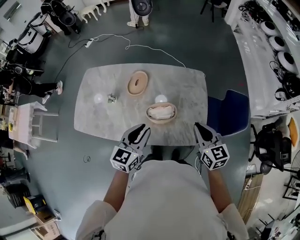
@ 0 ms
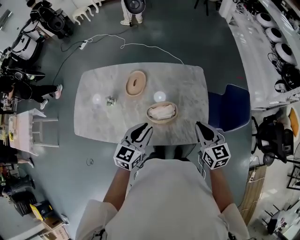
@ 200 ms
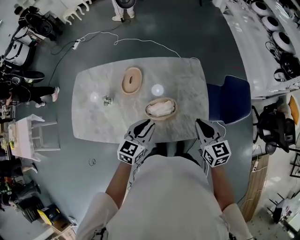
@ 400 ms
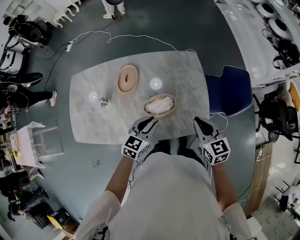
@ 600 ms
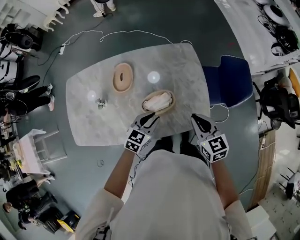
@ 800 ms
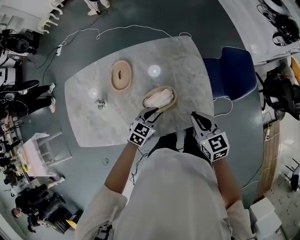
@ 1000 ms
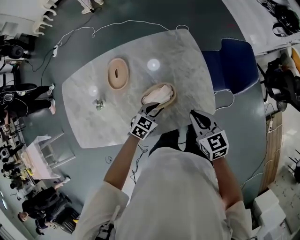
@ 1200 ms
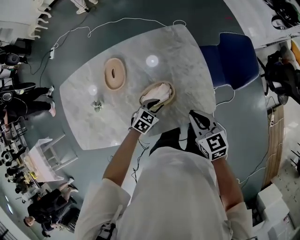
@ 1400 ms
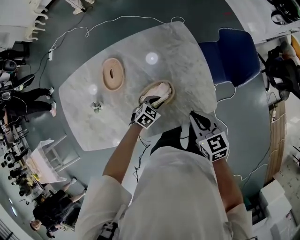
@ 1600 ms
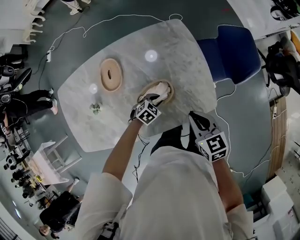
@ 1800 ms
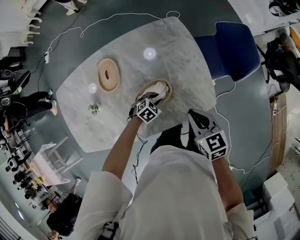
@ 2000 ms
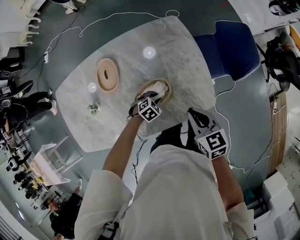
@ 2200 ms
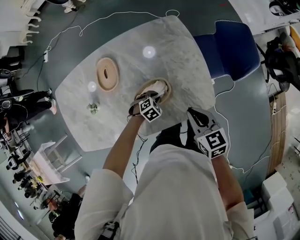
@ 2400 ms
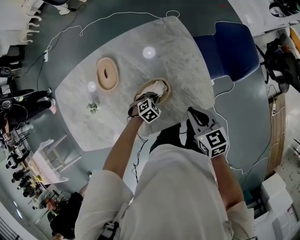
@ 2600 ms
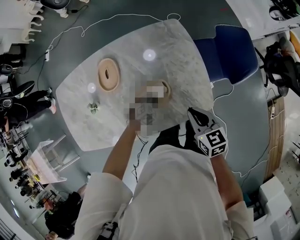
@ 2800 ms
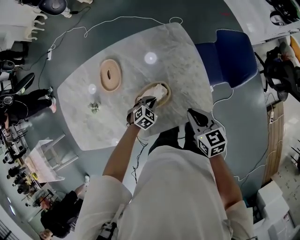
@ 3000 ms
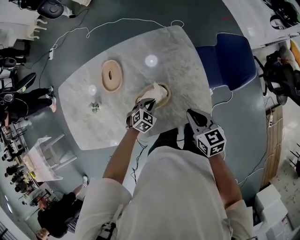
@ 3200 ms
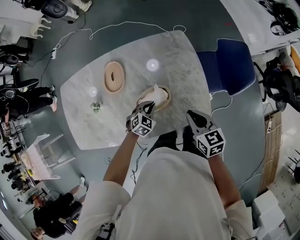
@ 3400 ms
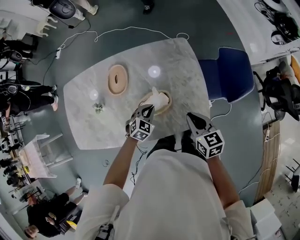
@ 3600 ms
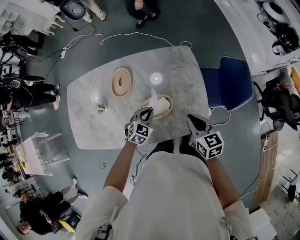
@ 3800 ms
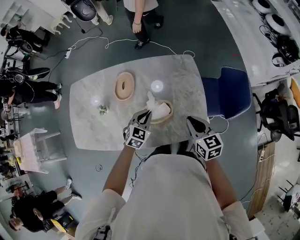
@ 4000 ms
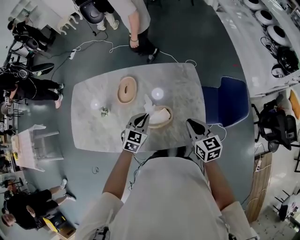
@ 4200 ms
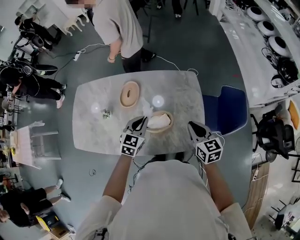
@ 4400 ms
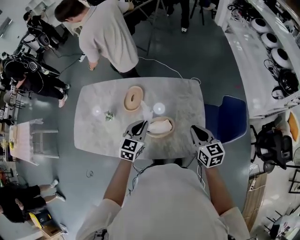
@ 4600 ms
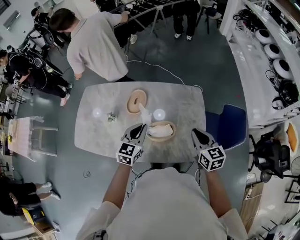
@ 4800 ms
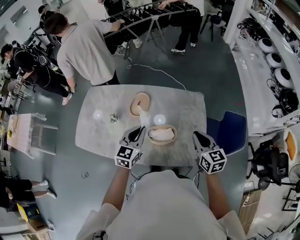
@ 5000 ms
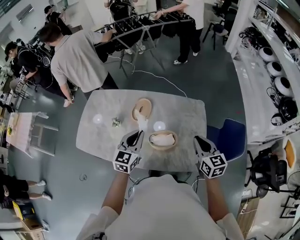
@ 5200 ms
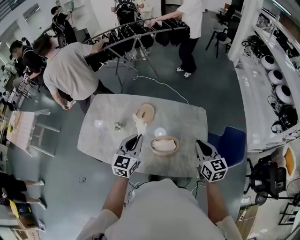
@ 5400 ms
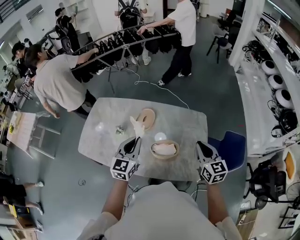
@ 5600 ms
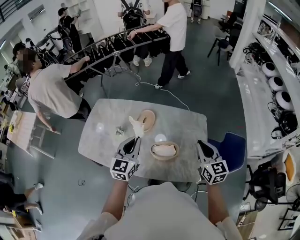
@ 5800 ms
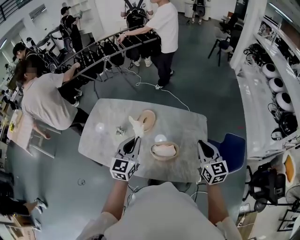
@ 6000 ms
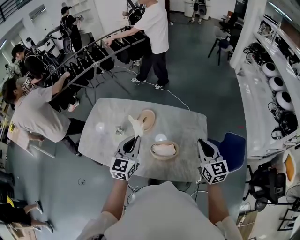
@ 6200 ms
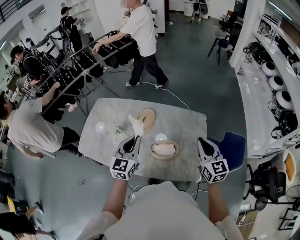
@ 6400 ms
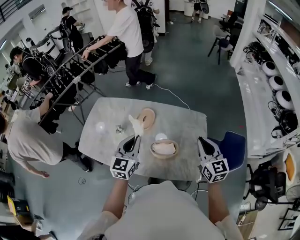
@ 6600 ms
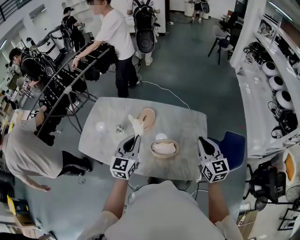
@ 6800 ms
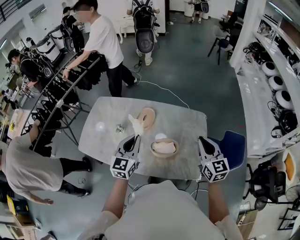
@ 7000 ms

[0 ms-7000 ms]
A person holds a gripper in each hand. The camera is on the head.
0 ms to 1400 ms: The right gripper travels downward by roughly 15 cm. The left gripper is displaced downward by roughly 30 cm, and angles its fingers downward, by roughly 30 degrees.
1400 ms to 2800 ms: The left gripper goes roughly 5 cm downward, turns by approximately 20 degrees, and closes.
2800 ms to 4200 ms: The left gripper travels upward by some 25 cm, and angles its fingers upward, by approximately 30 degrees, while the right gripper travels upward by some 10 cm.
4200 ms to 5600 ms: The right gripper goes about 15 cm upward; the left gripper shifts approximately 25 cm upward and to the left, and rotates roughly 30 degrees.
5600 ms to 7000 ms: The grippers move only a little.

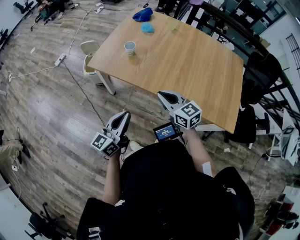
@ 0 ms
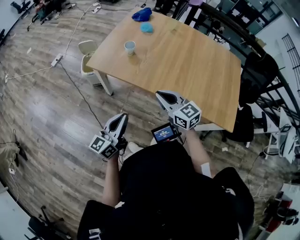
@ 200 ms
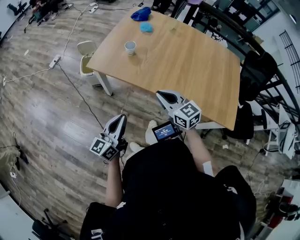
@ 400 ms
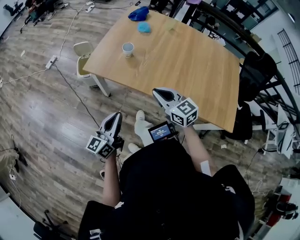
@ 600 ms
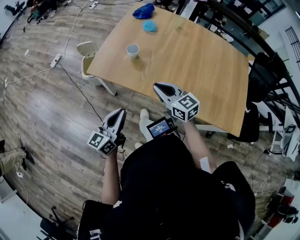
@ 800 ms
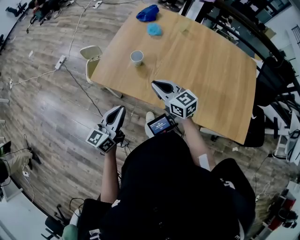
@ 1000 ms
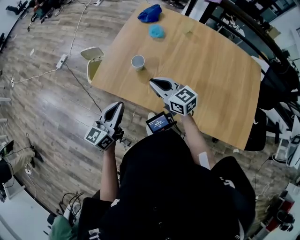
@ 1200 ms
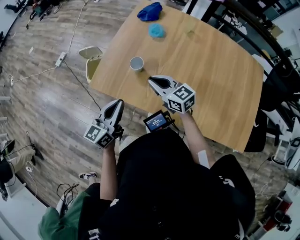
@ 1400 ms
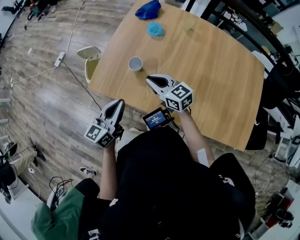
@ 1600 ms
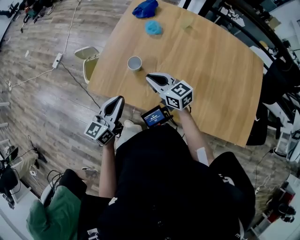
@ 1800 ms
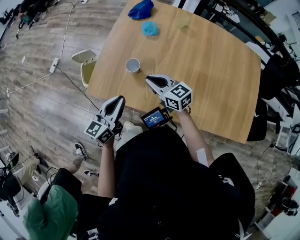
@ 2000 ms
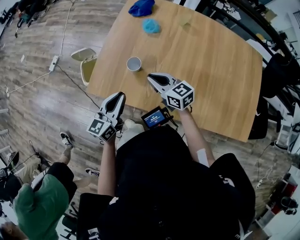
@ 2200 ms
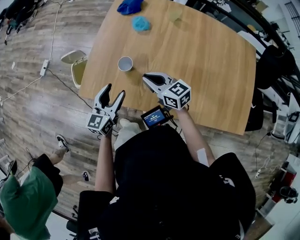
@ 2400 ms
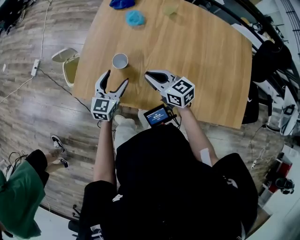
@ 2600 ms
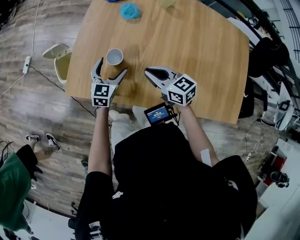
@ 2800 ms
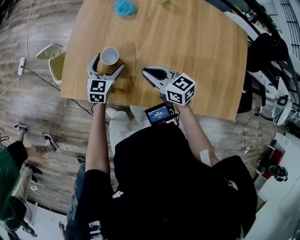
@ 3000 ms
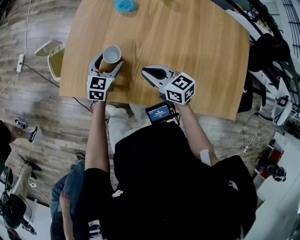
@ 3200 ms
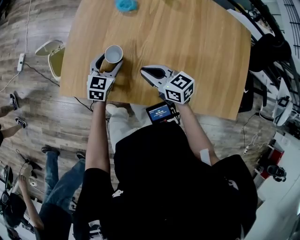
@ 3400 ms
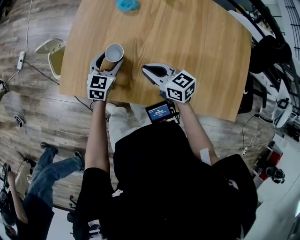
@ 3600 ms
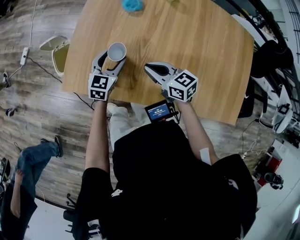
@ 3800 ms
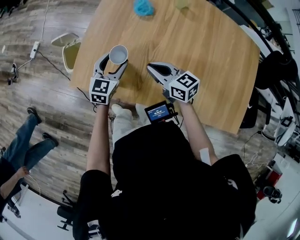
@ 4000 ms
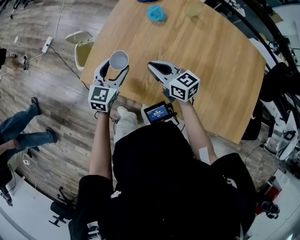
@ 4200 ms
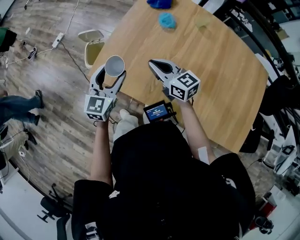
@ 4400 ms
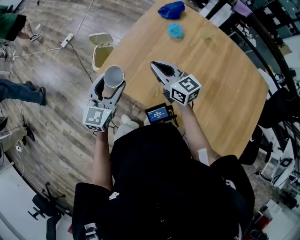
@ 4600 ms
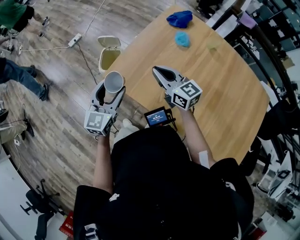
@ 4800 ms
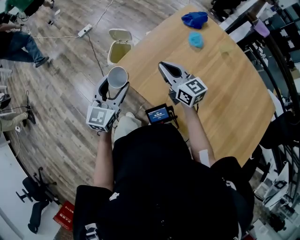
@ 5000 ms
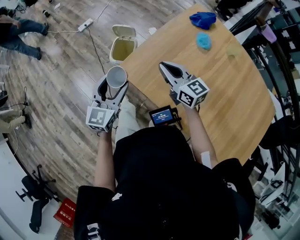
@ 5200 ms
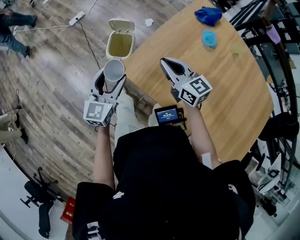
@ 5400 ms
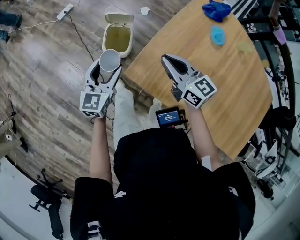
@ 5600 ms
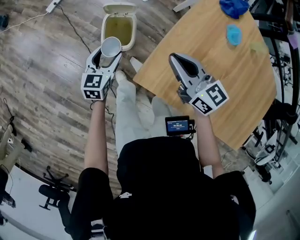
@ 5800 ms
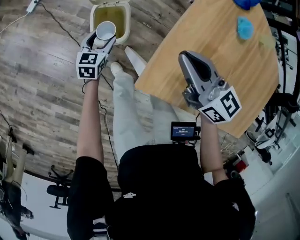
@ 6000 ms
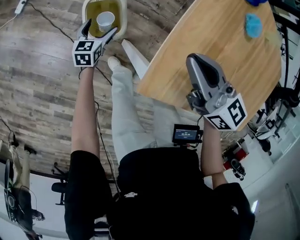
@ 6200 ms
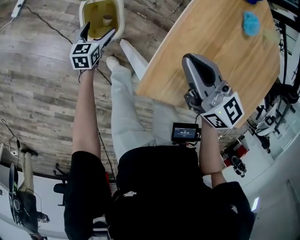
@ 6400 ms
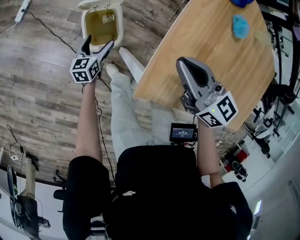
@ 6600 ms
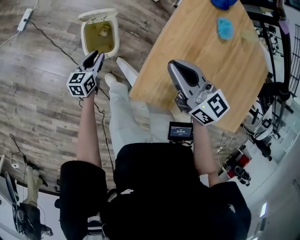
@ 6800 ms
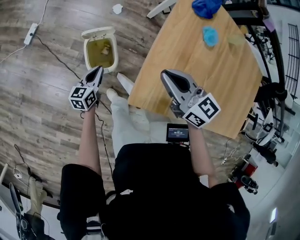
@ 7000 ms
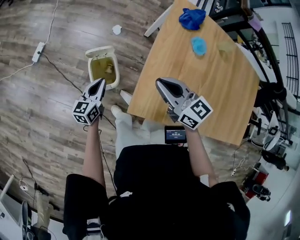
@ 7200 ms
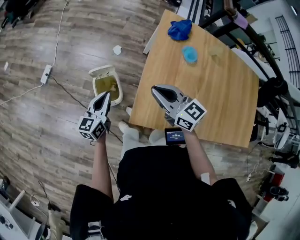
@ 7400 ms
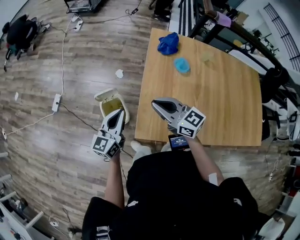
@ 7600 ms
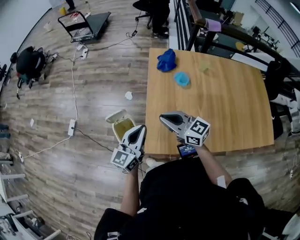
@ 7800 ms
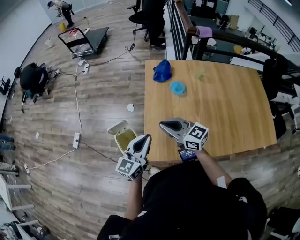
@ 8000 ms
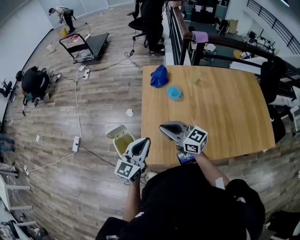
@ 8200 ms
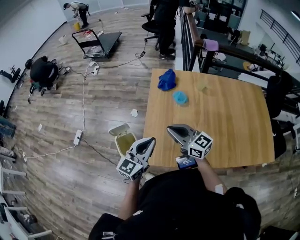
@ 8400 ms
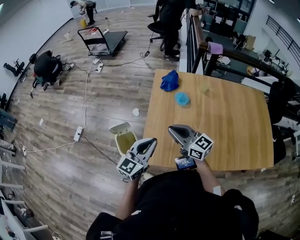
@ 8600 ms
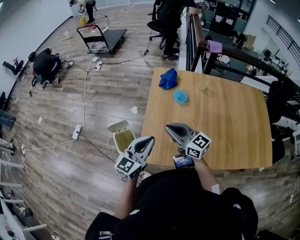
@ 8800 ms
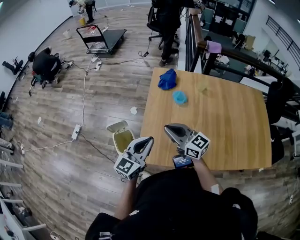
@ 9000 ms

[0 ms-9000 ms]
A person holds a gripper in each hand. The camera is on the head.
0 ms to 1600 ms: The grippers both shift forward by some 30 cm.
1600 ms to 3000 ms: The right gripper travels downward by approximately 5 cm. Meanwhile the left gripper travels forward and downward by approximately 25 cm, changes its angle by about 30 degrees, and opens.
3000 ms to 4400 ms: The left gripper moves upward, to the left and backward, about 20 cm, and closes its fingers; the right gripper travels upward and to the left by approximately 10 cm.
4400 ms to 6000 ms: The right gripper is displaced forward, to the left and downward by approximately 30 cm, while the left gripper shifts some 50 cm downward, forward and to the left, and turns by roughly 30 degrees.
6000 ms to 7600 ms: The left gripper goes approximately 35 cm upward, points its fingers approximately 40 degrees further upward, and closes up, while the right gripper shifts some 15 cm upward.
7600 ms to 9000 ms: The left gripper moves to the right and upward, approximately 20 cm; the right gripper is displaced to the right by approximately 10 cm.

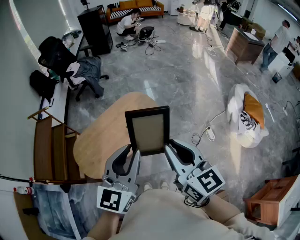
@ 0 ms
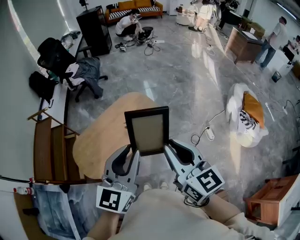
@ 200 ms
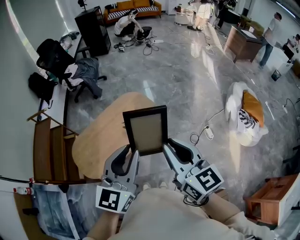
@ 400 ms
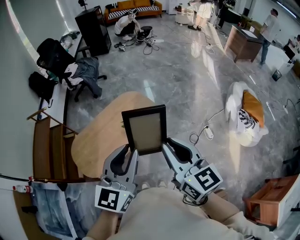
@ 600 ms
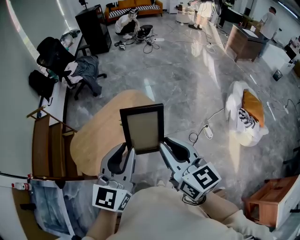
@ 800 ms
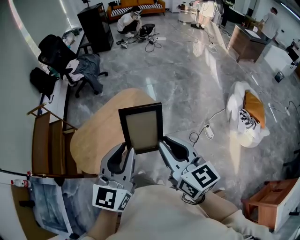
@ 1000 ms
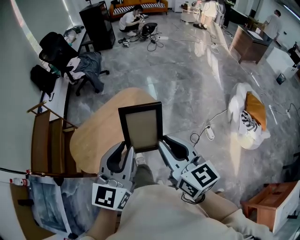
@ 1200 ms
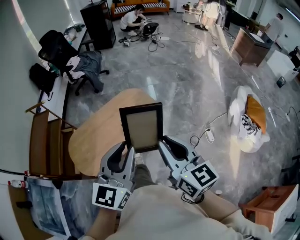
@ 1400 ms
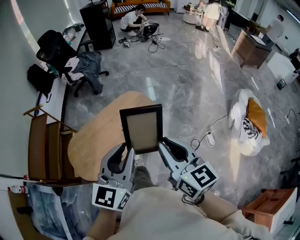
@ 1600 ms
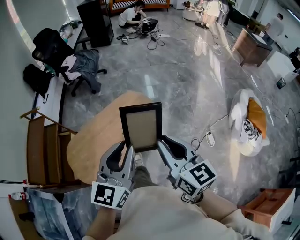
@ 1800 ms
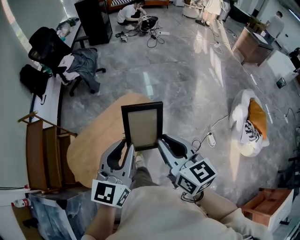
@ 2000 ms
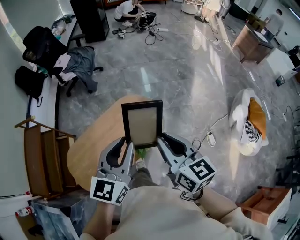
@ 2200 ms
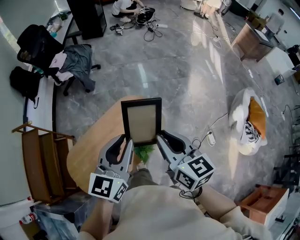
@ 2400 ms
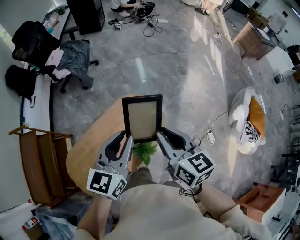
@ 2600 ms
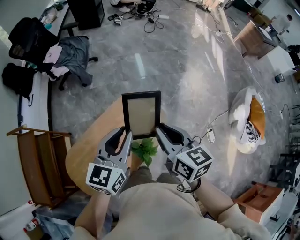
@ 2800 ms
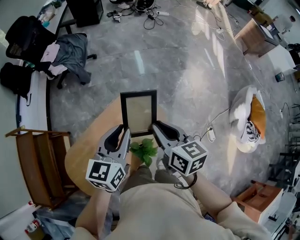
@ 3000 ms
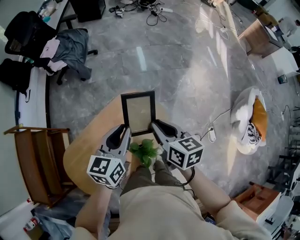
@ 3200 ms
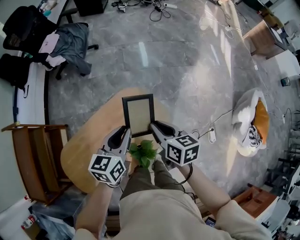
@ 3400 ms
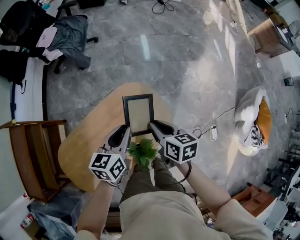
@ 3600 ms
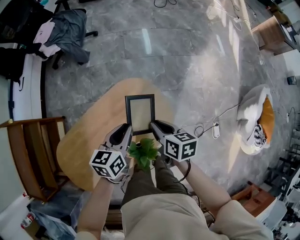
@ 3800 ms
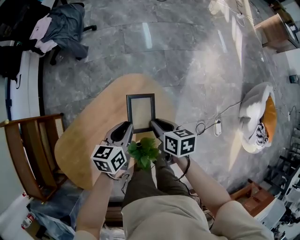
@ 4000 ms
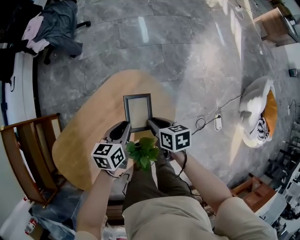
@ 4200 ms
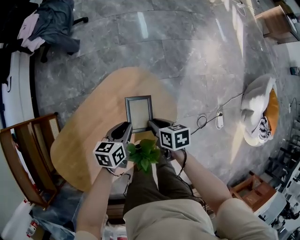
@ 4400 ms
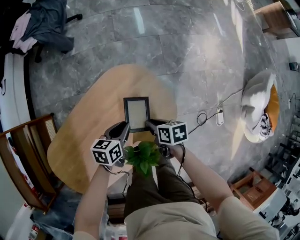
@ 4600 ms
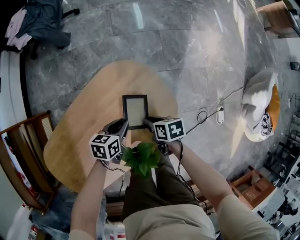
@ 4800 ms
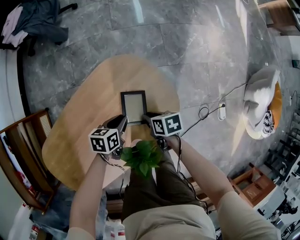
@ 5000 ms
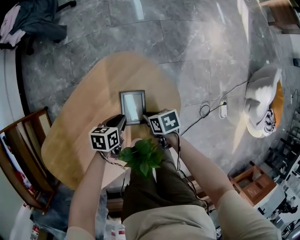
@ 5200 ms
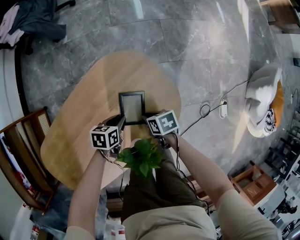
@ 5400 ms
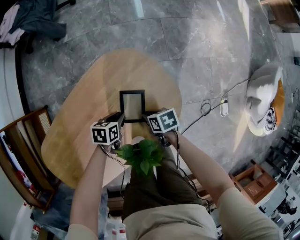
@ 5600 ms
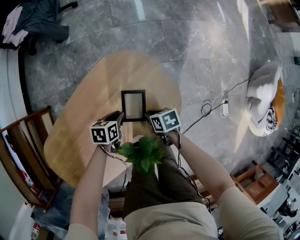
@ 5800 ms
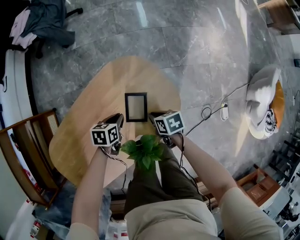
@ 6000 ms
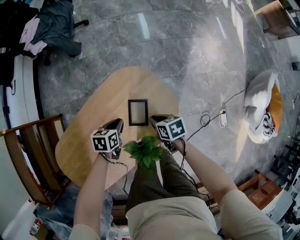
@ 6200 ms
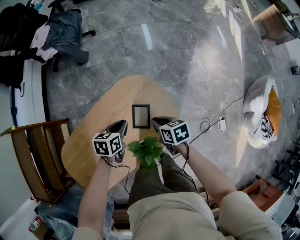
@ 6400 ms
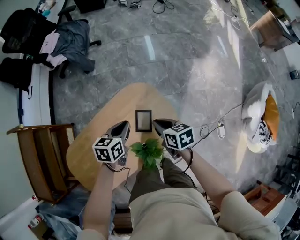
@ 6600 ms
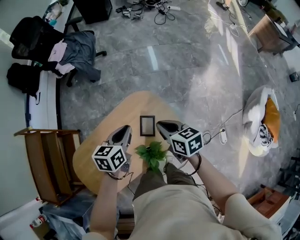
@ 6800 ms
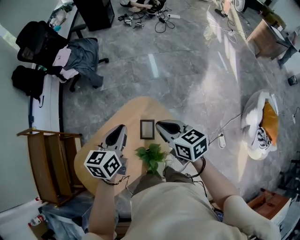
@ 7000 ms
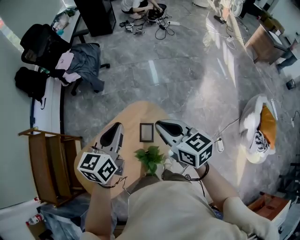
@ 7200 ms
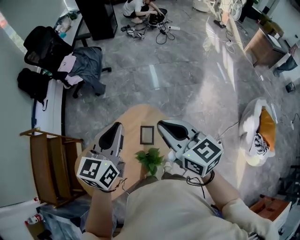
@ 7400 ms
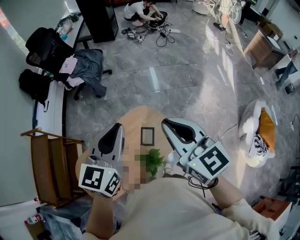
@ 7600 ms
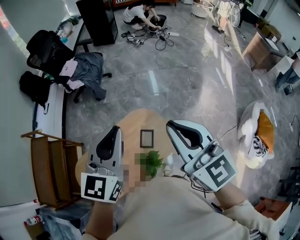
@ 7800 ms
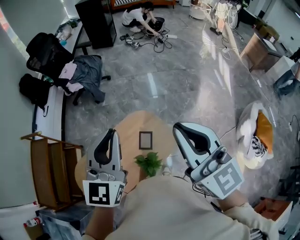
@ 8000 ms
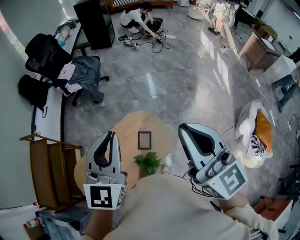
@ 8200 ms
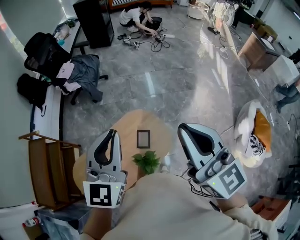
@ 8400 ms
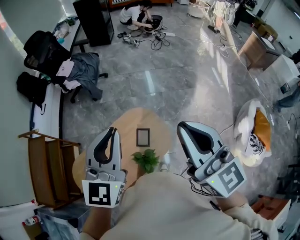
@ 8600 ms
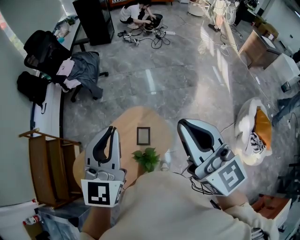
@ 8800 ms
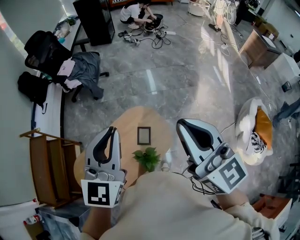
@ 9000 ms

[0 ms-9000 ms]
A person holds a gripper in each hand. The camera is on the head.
0 ms to 1600 ms: The left gripper shifts approximately 10 cm forward, while the right gripper is displaced forward and downward by approximately 10 cm.
1600 ms to 3000 ms: Both grippers travel together forward, about 40 cm. The left gripper swivels about 20 degrees; the right gripper rotates some 20 degrees.
3000 ms to 4400 ms: The two grippers go some 40 cm downward. The left gripper swivels about 30 degrees. The right gripper turns by about 40 degrees.
4400 ms to 6000 ms: Both grippers move downward, some 10 cm.
6000 ms to 7600 ms: The two grippers go roughly 70 cm upward. The right gripper points its fingers some 50 degrees further upward, while the left gripper tilts its fingers some 50 degrees upward.
7600 ms to 9000 ms: The left gripper goes roughly 5 cm upward; the right gripper shifts roughly 10 cm upward and backward.
